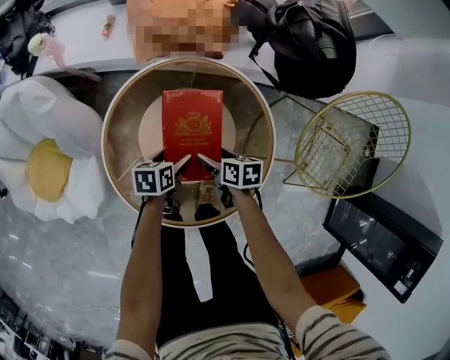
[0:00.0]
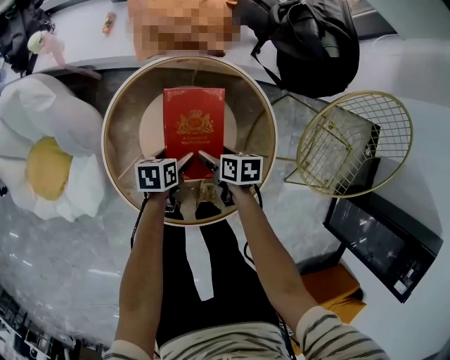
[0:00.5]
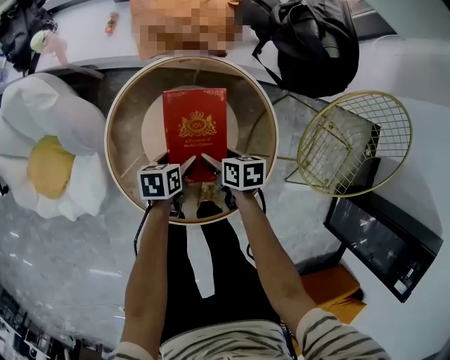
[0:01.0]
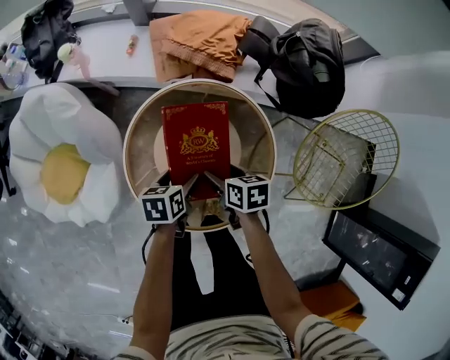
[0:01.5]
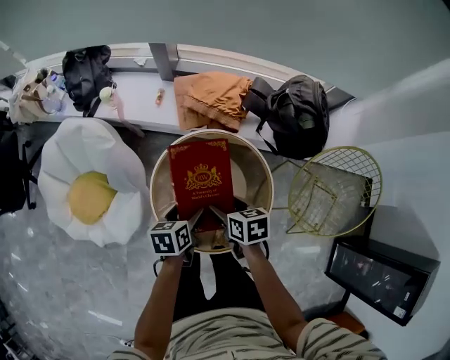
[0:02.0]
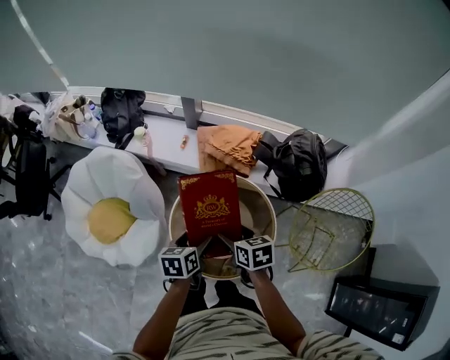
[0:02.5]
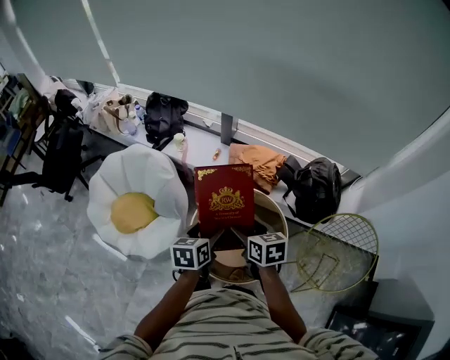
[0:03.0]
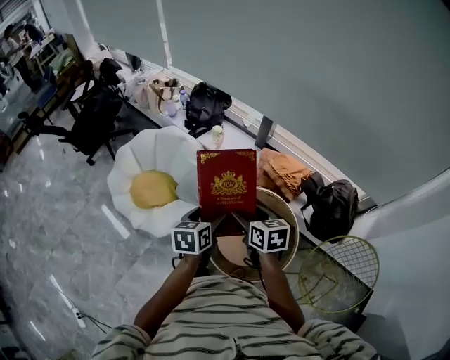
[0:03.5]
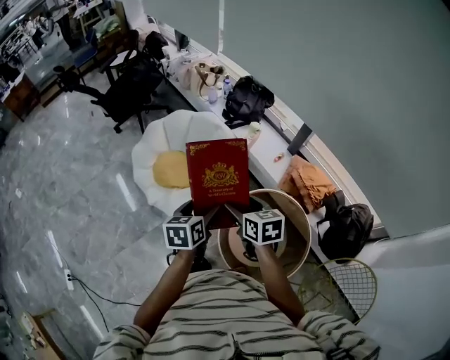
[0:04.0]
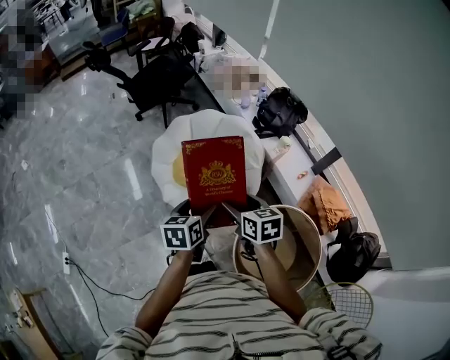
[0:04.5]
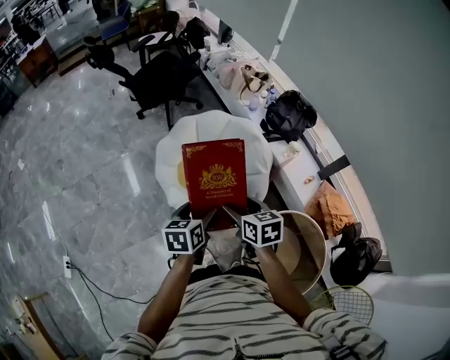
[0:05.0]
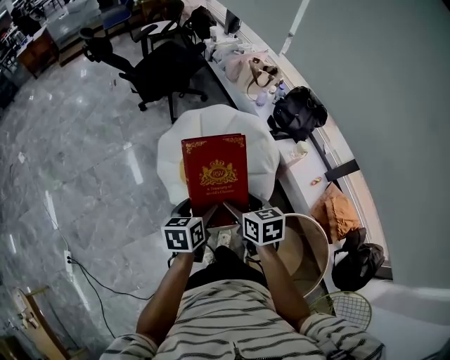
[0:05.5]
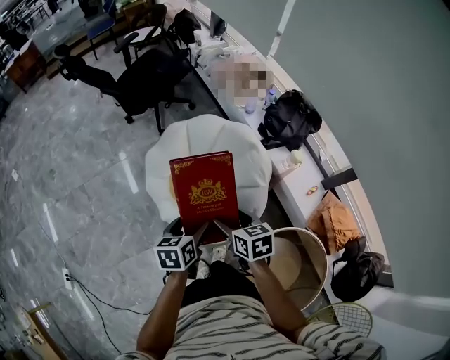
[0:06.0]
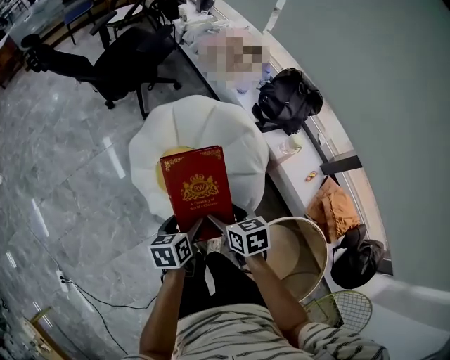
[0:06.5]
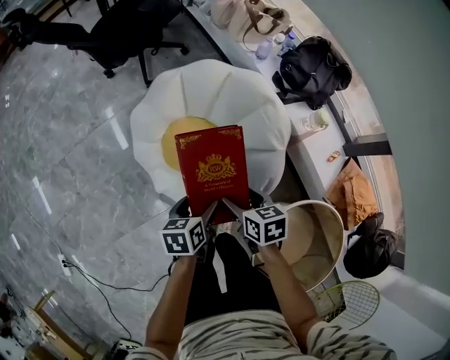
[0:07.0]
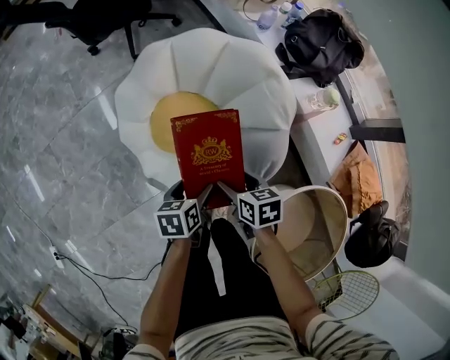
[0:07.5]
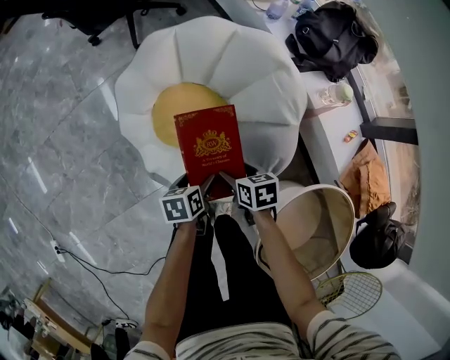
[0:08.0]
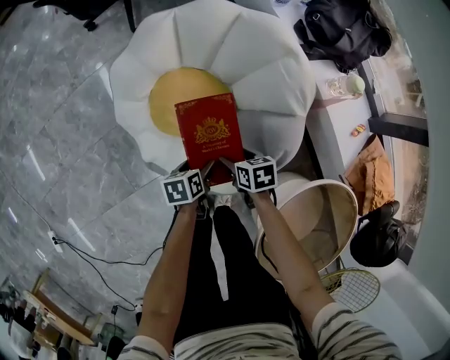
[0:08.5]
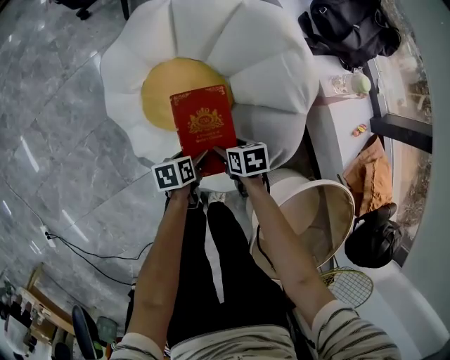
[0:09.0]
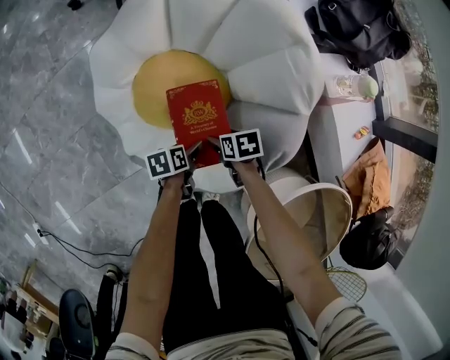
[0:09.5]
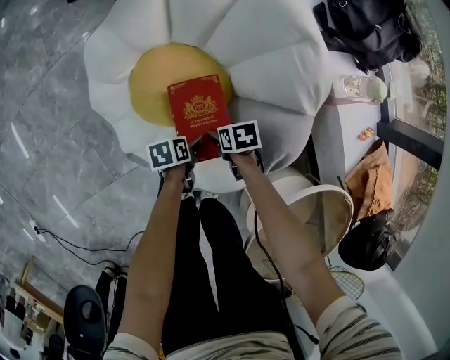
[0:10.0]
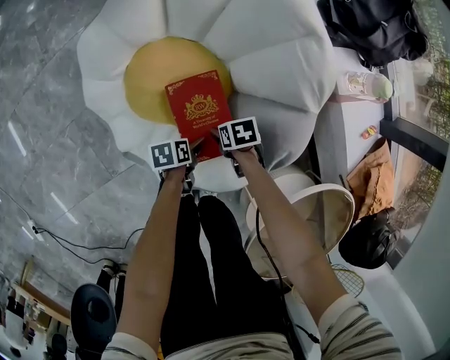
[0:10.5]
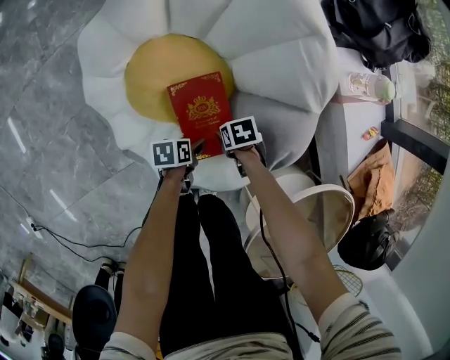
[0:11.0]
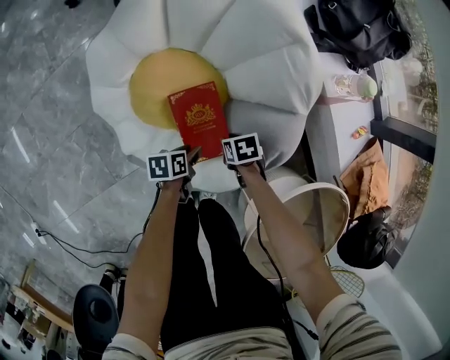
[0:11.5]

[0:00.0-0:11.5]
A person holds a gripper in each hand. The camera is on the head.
0:00.0 to 0:02.0: Both grippers move upward, roughly 30 cm.
0:02.0 to 0:04.0: The left gripper moves some 40 cm, and changes its angle by some 50 degrees; the right gripper changes place by roughly 40 cm, and rotates some 50 degrees.
0:04.0 to 0:06.0: Both grippers move forward and to the left, some 30 cm.
0:06.0 to 0:07.5: Both grippers move downward, approximately 30 cm.
0:07.5 to 0:09.5: Both grippers travel together downward, roughly 25 cm. The left gripper changes its angle by some 20 degrees. Meanwhile the right gripper rotates some 20 degrees.
0:09.5 to 0:11.5: The right gripper reaches some 10 cm downward, then returns, and closes, while the left gripper closes up.

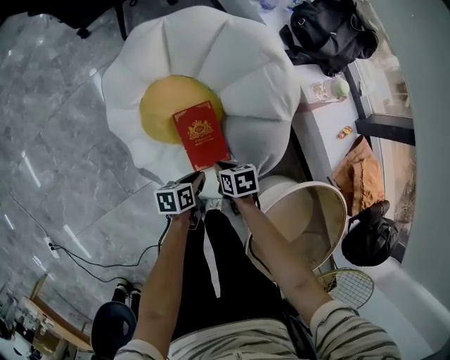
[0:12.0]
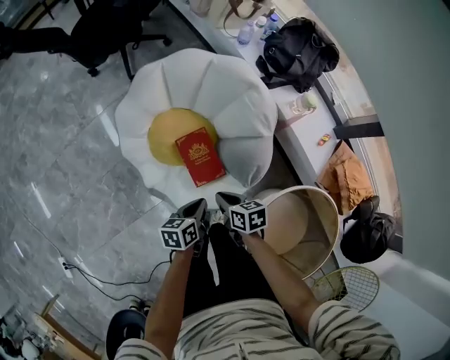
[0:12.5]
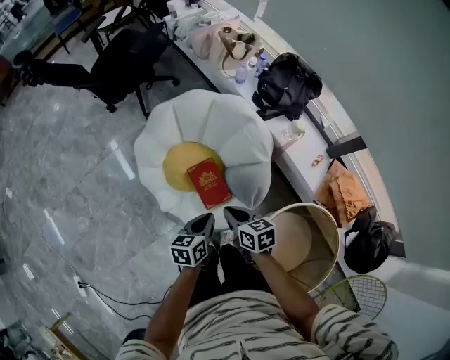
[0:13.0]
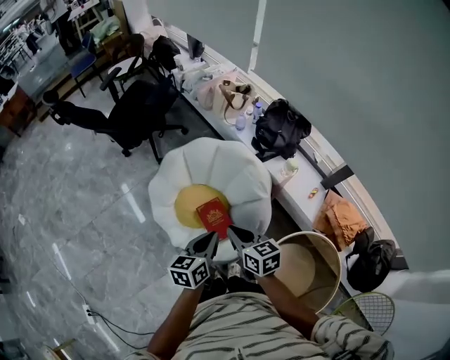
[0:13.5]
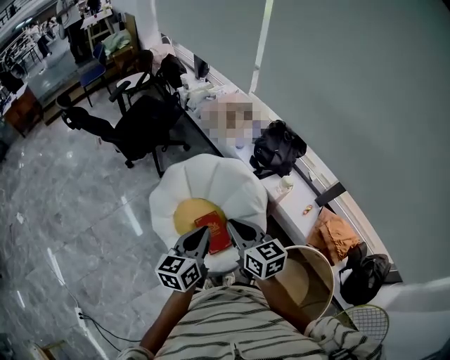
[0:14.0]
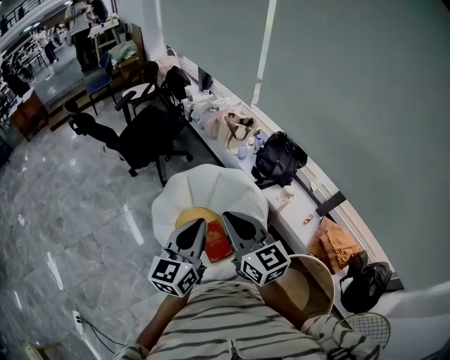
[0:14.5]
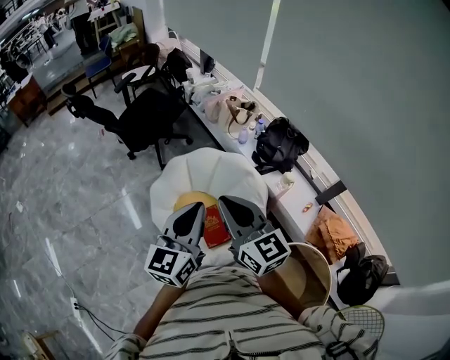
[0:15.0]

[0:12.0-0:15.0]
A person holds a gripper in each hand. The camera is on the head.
0:12.0 to 0:13.5: The grippers both shift upward by roughly 50 cm. The left gripper turns by some 40 degrees. Meanwhile the right gripper tilts its fingers roughly 30 degrees upward.
0:13.5 to 0:15.0: The two grippers go approximately 25 cm upward. The right gripper rotates about 30 degrees, while the left gripper rotates roughly 30 degrees.

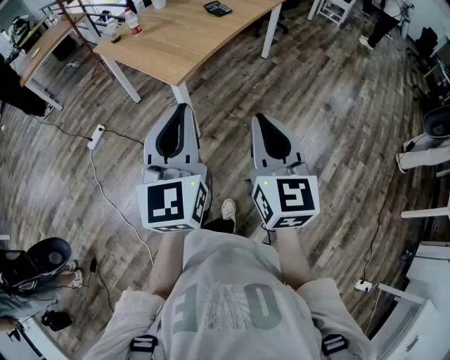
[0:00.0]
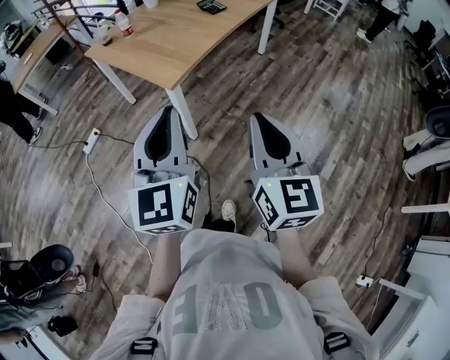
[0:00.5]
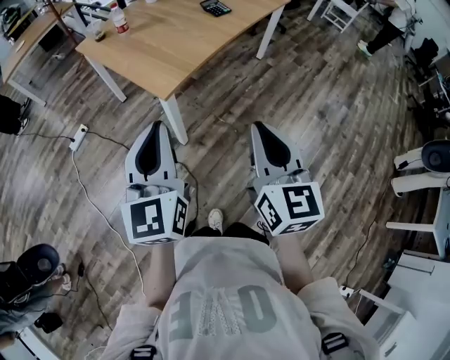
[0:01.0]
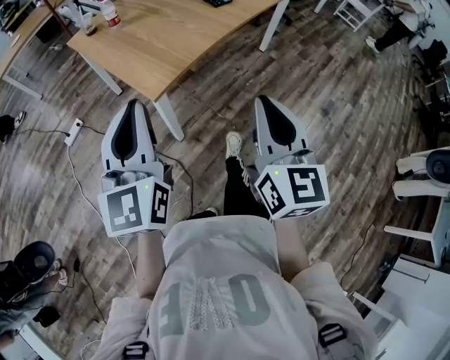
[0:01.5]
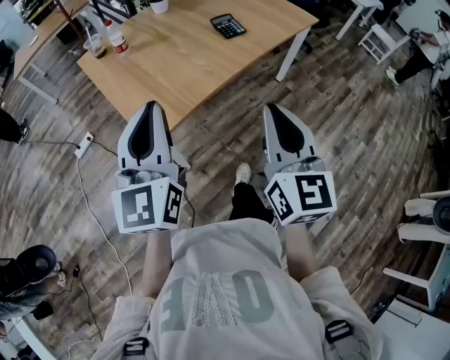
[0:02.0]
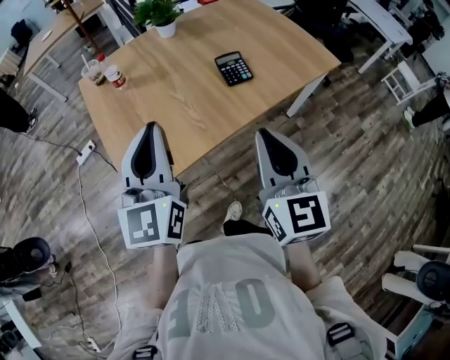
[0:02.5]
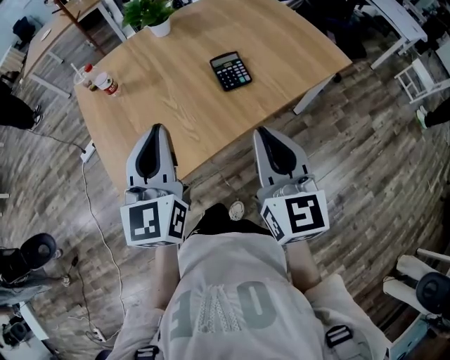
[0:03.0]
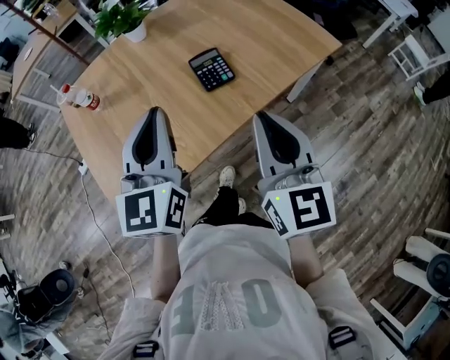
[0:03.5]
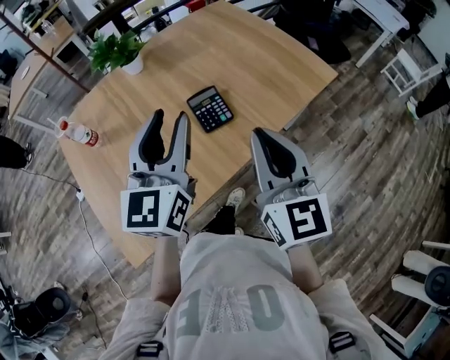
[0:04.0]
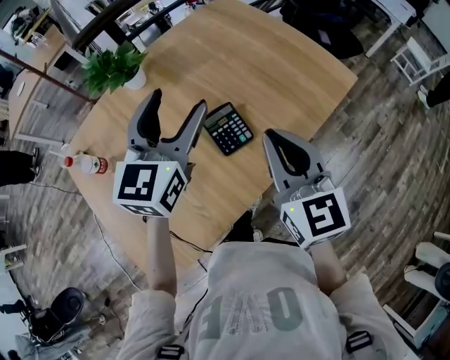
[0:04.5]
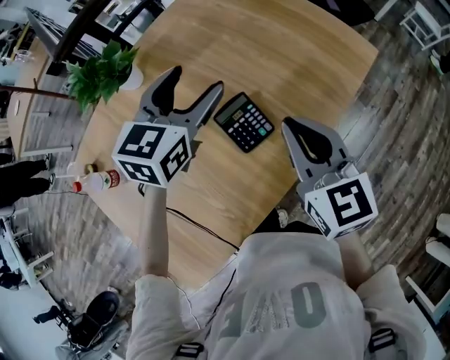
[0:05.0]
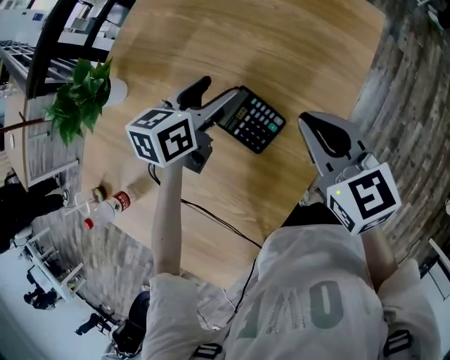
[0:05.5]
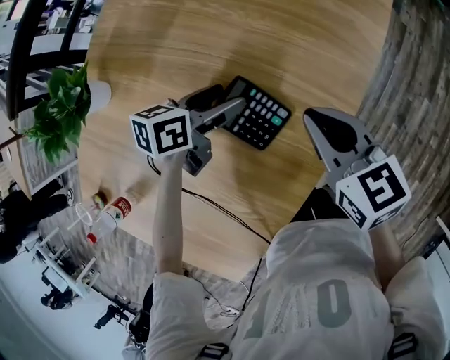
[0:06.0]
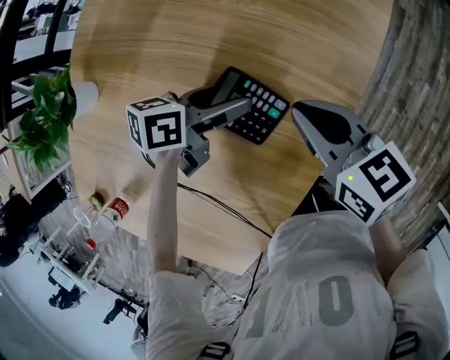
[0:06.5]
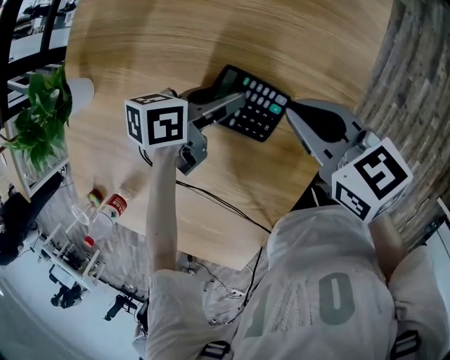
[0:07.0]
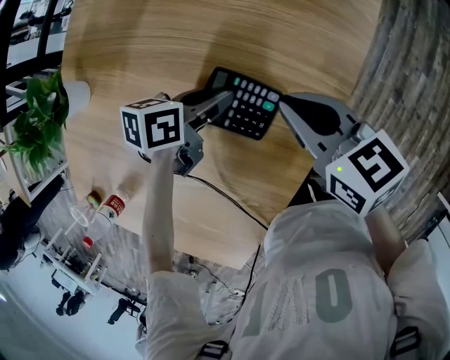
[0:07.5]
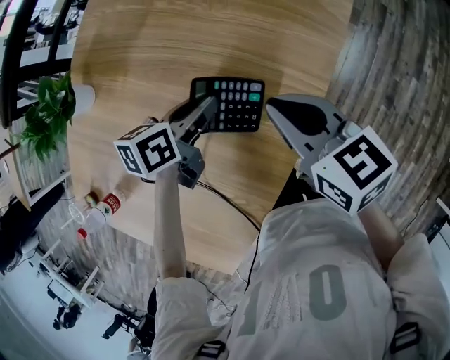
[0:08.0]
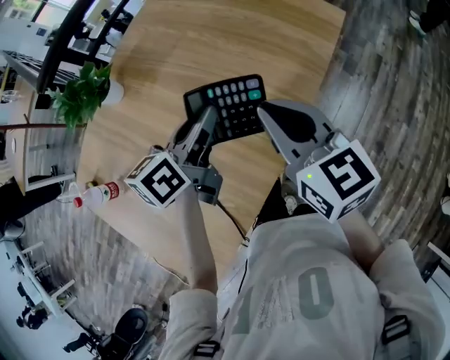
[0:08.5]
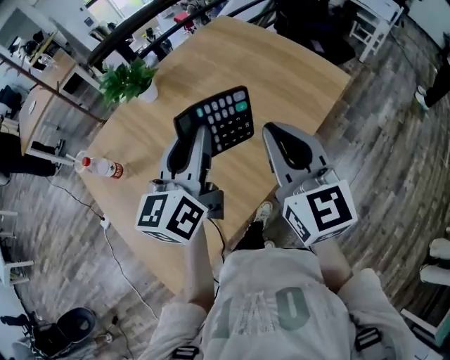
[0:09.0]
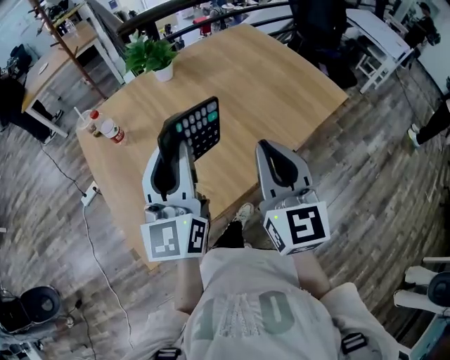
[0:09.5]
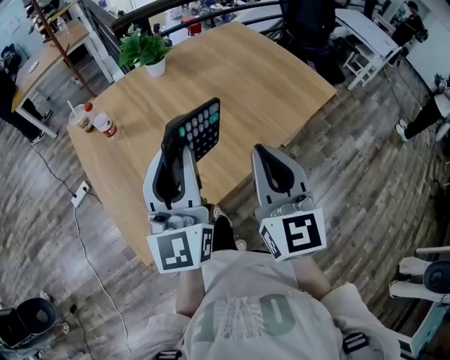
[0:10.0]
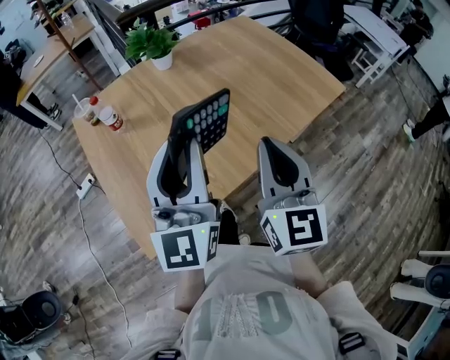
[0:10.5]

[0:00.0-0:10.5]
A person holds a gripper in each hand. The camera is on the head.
0:00.0 to 0:02.0: The two grippers go roughly 35 cm forward.
0:02.0 to 0:04.0: The two grippers travel together, forward and to the right, roughly 40 cm. The left gripper opens.
0:04.0 to 0:06.5: Both grippers move downward, some 25 cm. The left gripper tilts its fingers about 30 degrees downward, and opens its fingers; the right gripper turns by about 40 degrees.
0:06.5 to 0:08.5: The grippers both shift upward by some 15 cm. The left gripper changes its angle by approximately 50 degrees, and closes its fingers. The right gripper swivels roughly 20 degrees.
0:08.5 to 0:10.5: The left gripper moves backward, upward and to the left, some 35 cm, and tilts its fingers approximately 30 degrees upward. Meanwhile the right gripper moves backward, to the left and upward, roughly 20 cm, and rotates some 20 degrees.

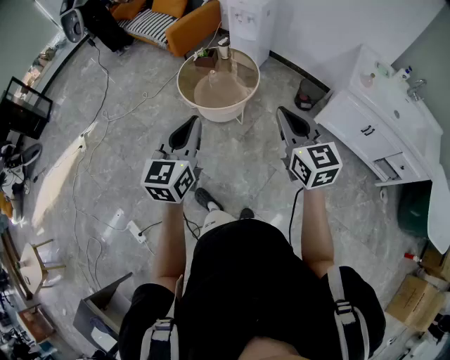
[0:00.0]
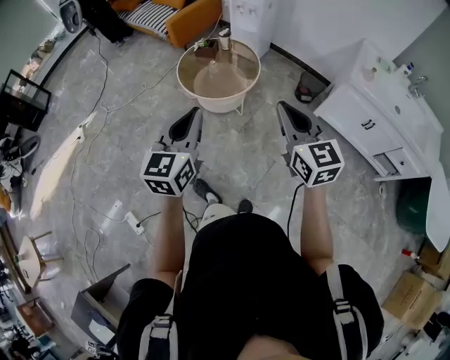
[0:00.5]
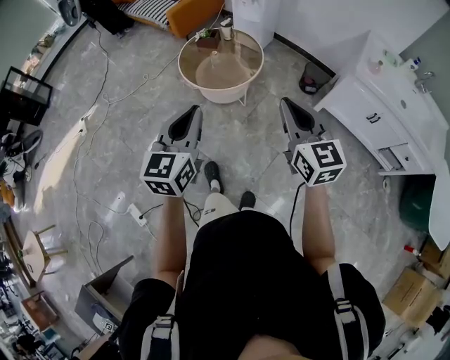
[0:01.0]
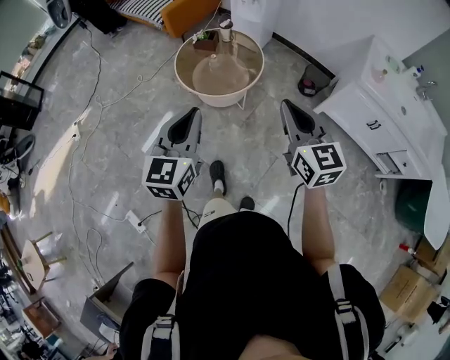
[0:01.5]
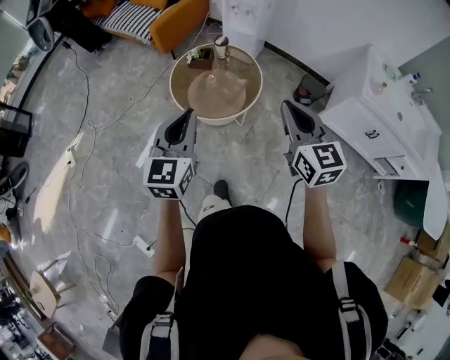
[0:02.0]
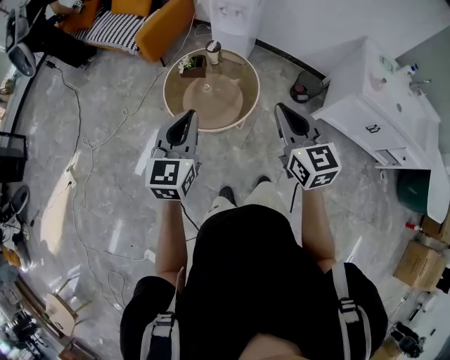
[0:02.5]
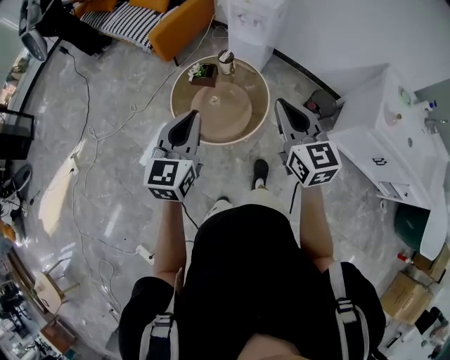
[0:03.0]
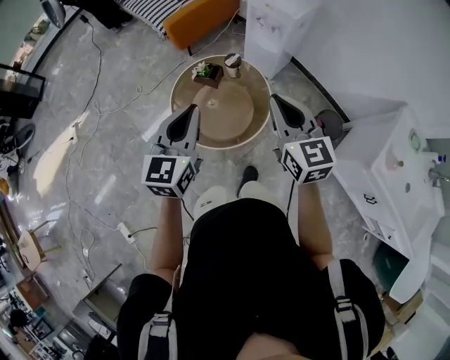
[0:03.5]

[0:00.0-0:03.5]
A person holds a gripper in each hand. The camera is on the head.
0:00.0 to 0:02.0: The grippers both shift forward by some 20 cm.
0:02.0 to 0:03.5: Both grippers move forward, roughly 30 cm.
